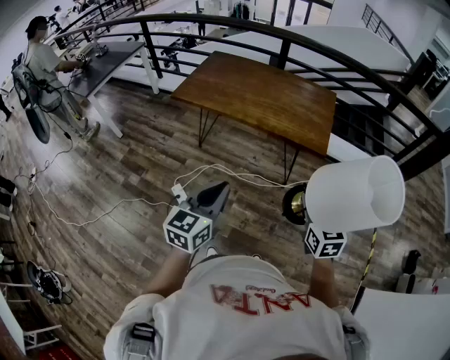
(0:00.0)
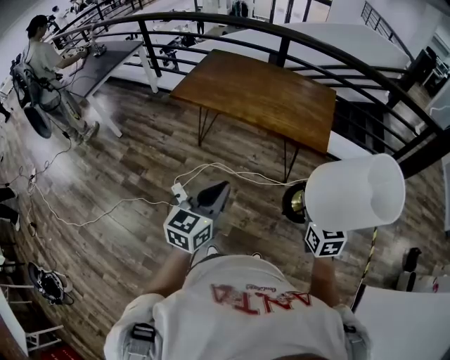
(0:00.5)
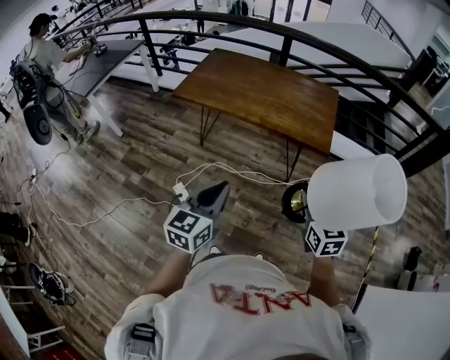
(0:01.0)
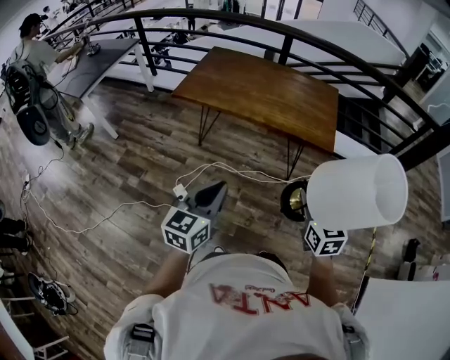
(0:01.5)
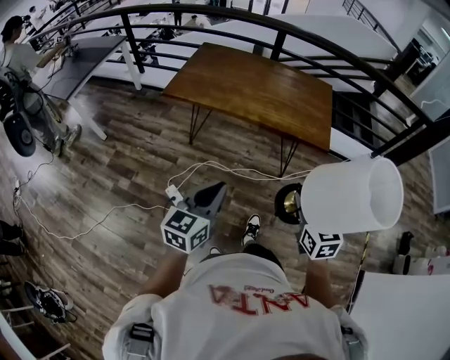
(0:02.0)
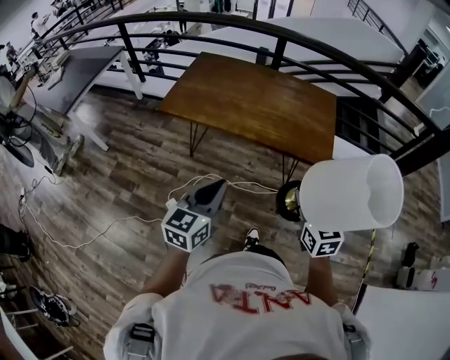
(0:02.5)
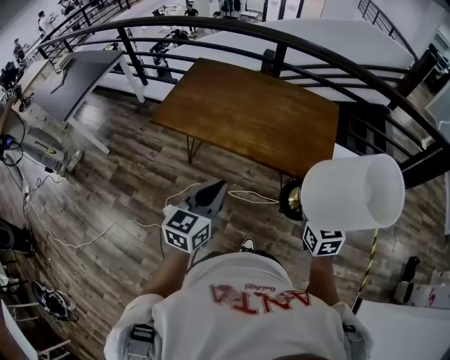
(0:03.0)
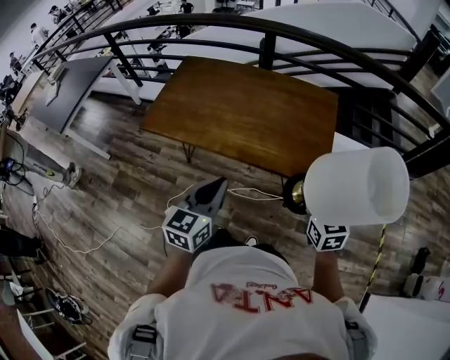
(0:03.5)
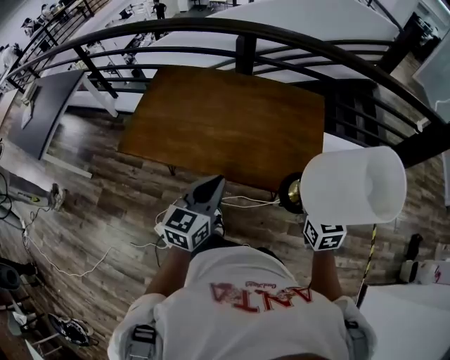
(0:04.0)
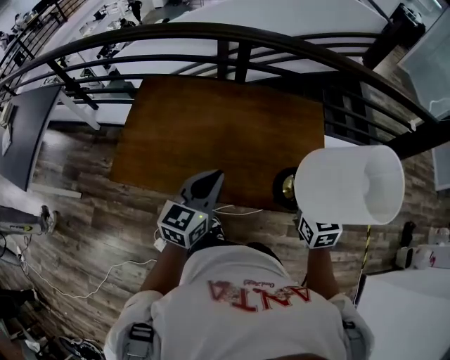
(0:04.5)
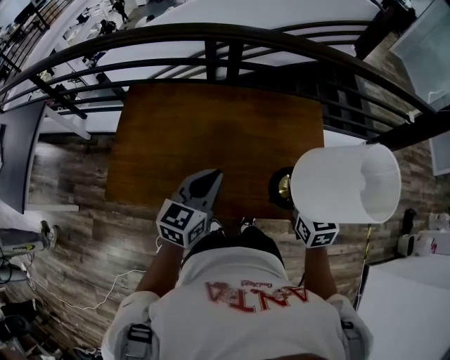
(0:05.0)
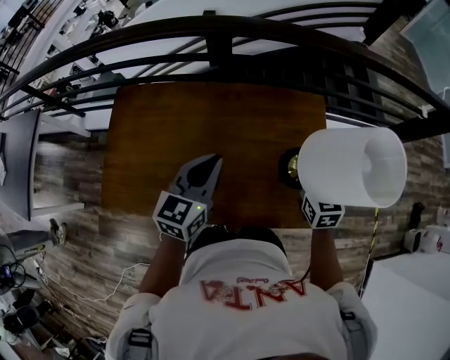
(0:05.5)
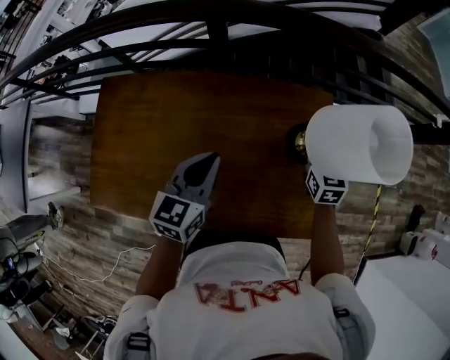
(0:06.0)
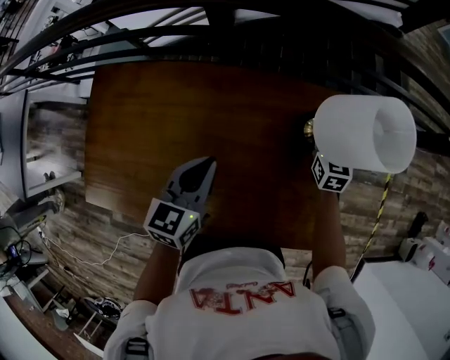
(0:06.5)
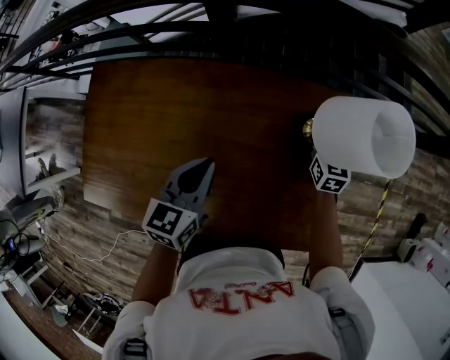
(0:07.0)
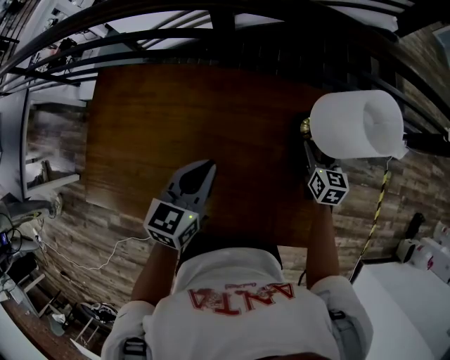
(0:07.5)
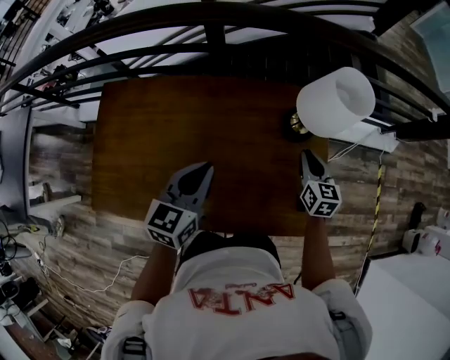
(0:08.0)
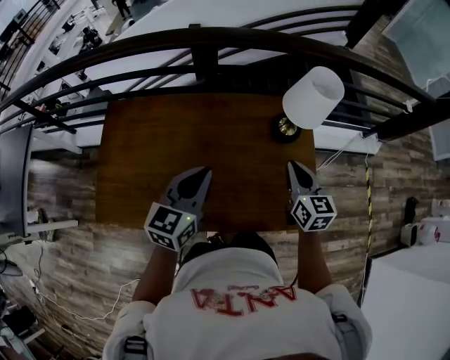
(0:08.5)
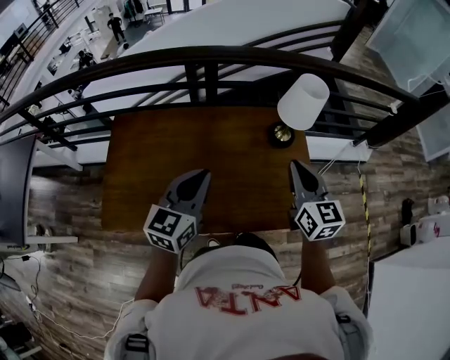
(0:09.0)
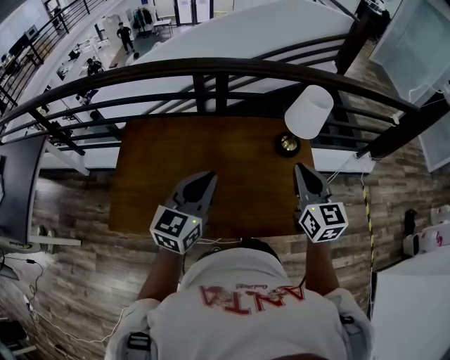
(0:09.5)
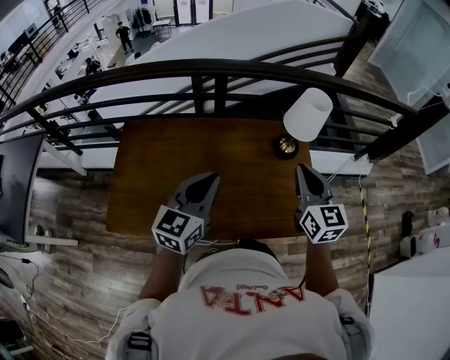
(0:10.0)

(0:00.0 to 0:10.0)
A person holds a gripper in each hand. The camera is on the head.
0:00.0 - 0:02.0: Both grippers move to the left, some 10 cm.
0:02.0 - 0:04.0: The pair of grippers is taken forward, roughly 40 cm.
0:04.0 - 0:06.0: The grippers both shift forward by roughly 40 cm.
0:06.0 - 0:08.0: The right gripper is displaced backward and downward by roughly 10 cm, and opens and closes again, while the left gripper shifts by some 5 cm.
0:08.0 - 0:10.0: The right gripper moves upward and backward, some 30 cm, and rotates roughly 20 degrees; the left gripper goes some 20 cm upward and backward.

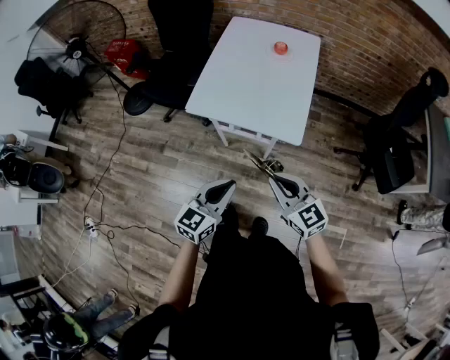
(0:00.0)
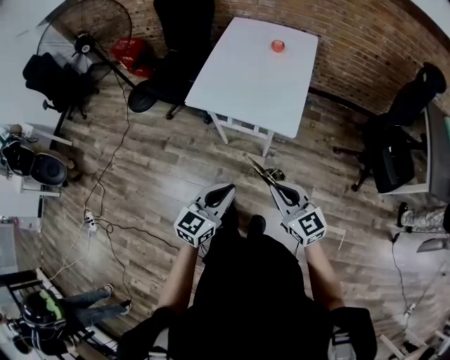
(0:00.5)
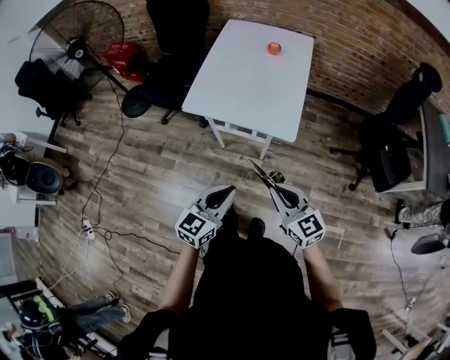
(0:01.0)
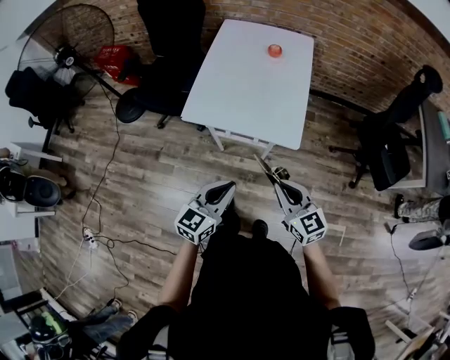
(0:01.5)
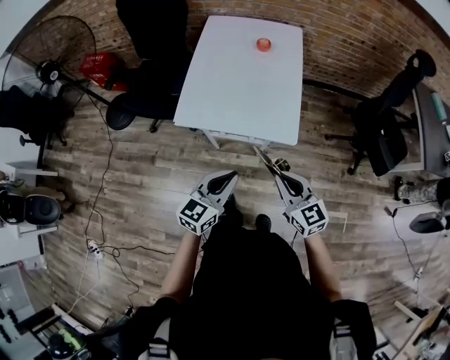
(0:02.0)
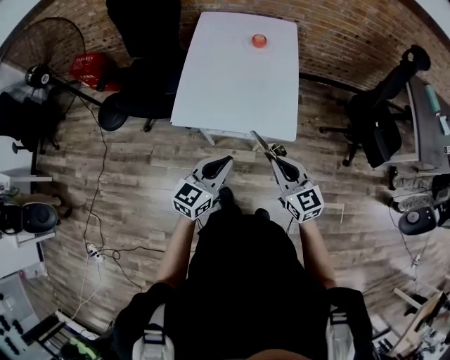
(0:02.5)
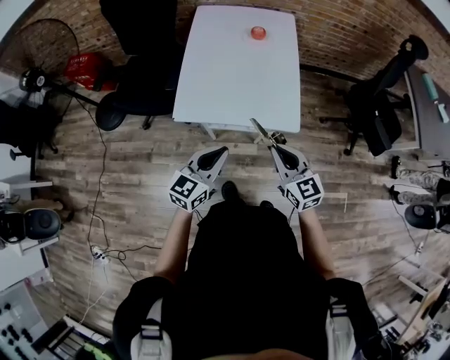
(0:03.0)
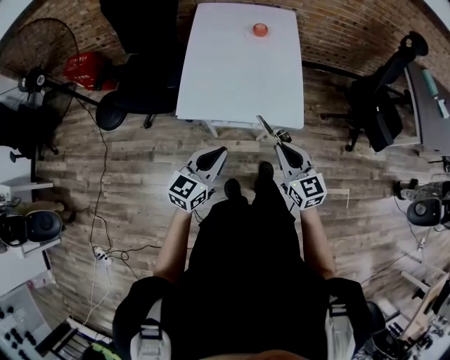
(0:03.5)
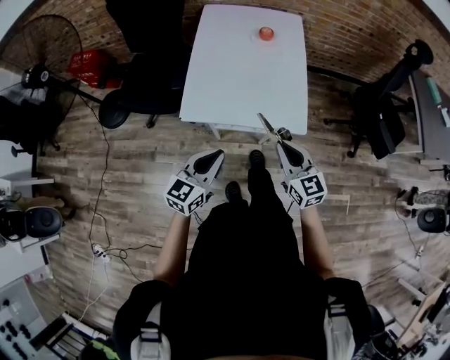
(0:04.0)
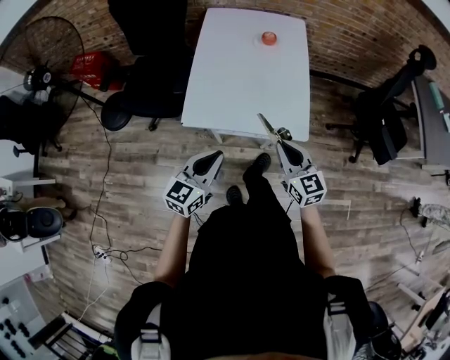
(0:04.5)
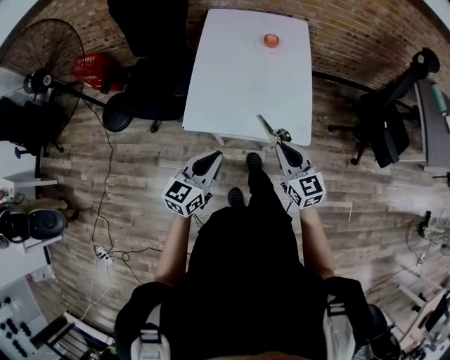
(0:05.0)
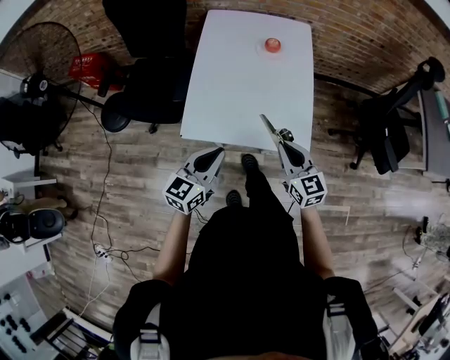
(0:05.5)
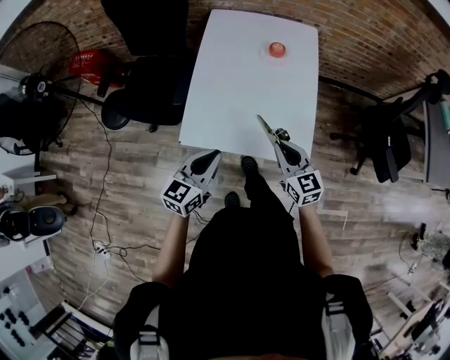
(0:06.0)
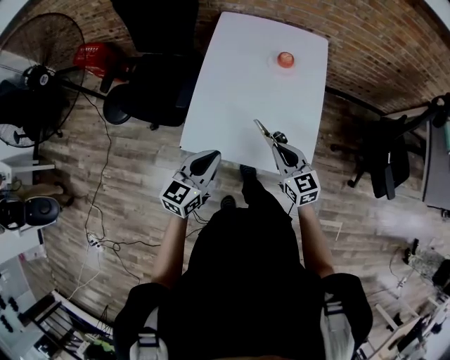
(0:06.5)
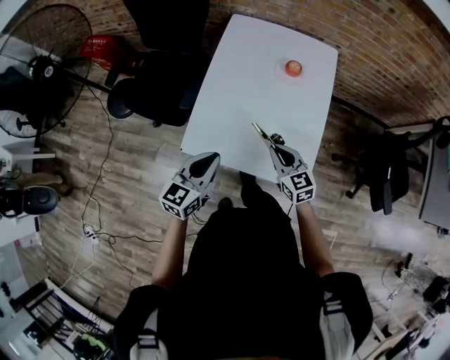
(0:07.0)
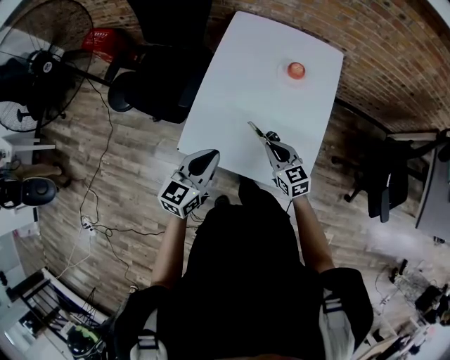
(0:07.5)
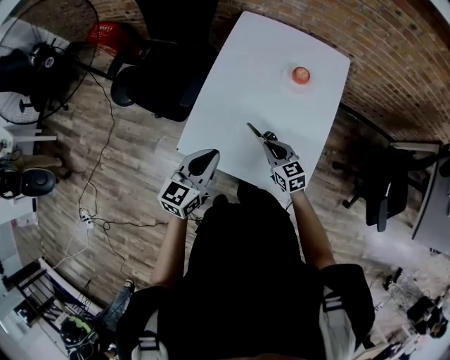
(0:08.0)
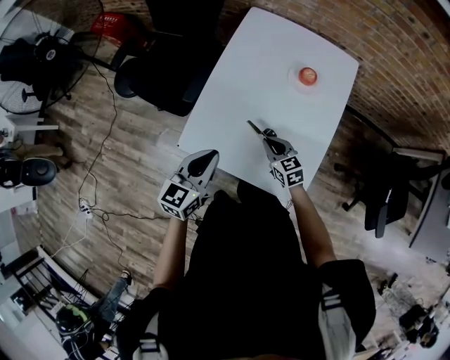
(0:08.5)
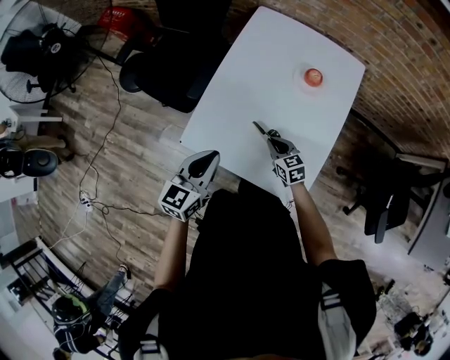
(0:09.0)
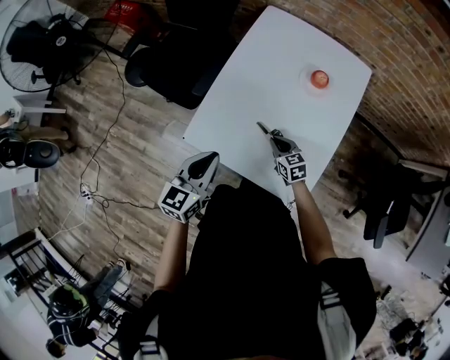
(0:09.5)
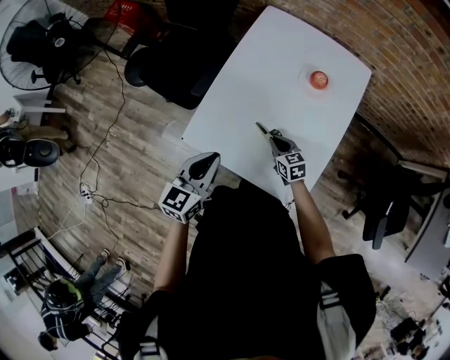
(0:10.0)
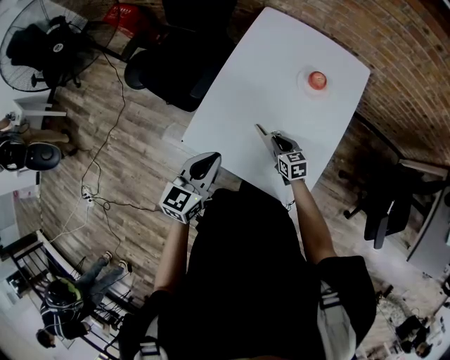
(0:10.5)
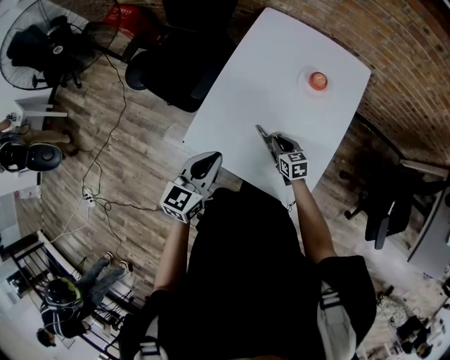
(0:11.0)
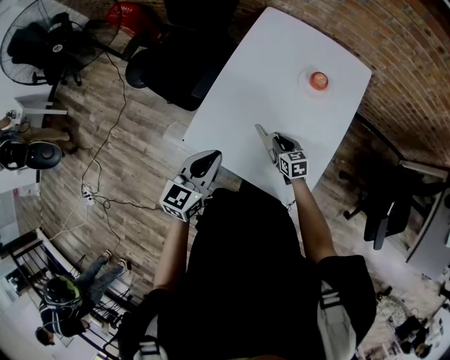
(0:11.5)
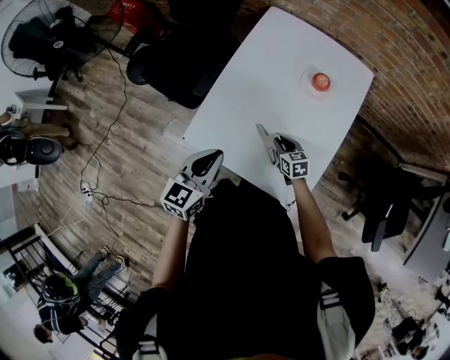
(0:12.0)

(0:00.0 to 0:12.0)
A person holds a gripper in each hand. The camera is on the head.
0:00.0 - 0:02.0: The left gripper is displaced forward by about 10 cm; the right gripper heads forward, covering approximately 5 cm.
0:02.0 - 0:04.0: The right gripper is displaced forward and to the left by about 10 cm. Meanwhile the left gripper shifts about 10 cm to the left.
0:04.0 - 0:06.0: The two grippers go some 15 cm forward.
0:06.0 - 0:08.0: The left gripper is displaced forward by roughly 10 cm. The right gripper moves forward and downward, approximately 20 cm, and turns by roughly 20 degrees.
0:08.0 - 0:10.0: The right gripper moves downward, some 10 cm.
0:10.0 - 0:12.0: The grippers move only a little.

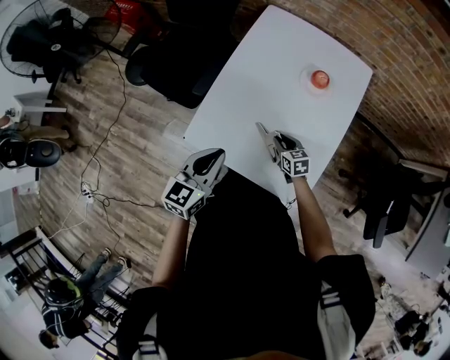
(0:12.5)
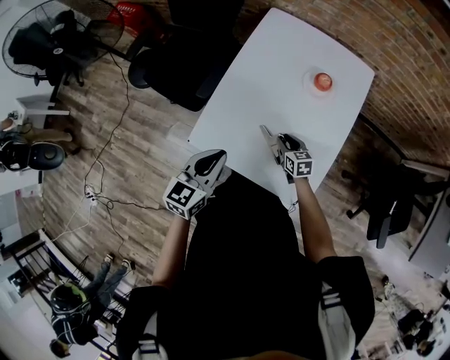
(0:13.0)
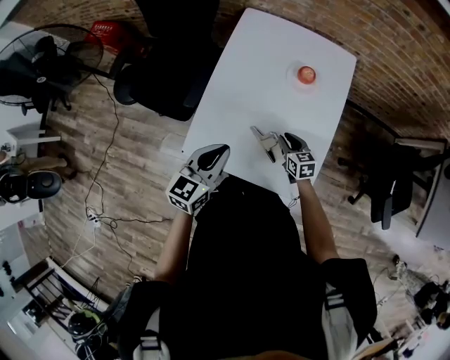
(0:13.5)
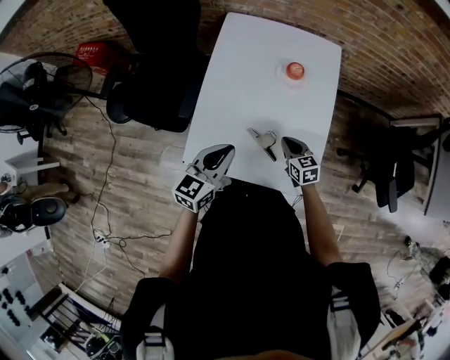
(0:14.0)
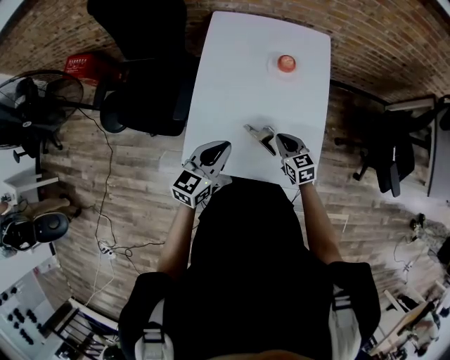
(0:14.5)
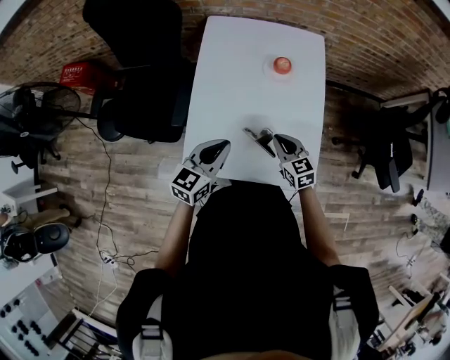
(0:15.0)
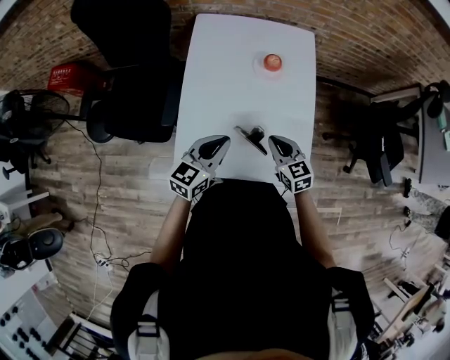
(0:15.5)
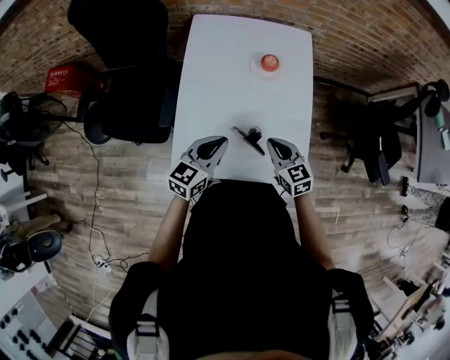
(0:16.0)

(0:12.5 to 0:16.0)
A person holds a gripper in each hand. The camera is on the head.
0:12.5 - 0:14.5: The right gripper shifts approximately 10 cm upward, and closes its fingers; the left gripper ends up some 5 cm from where it was, and turns by roughly 20 degrees.
0:14.5 - 0:16.0: The right gripper goes roughly 5 cm upward.

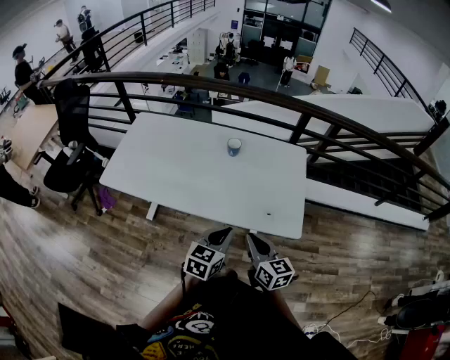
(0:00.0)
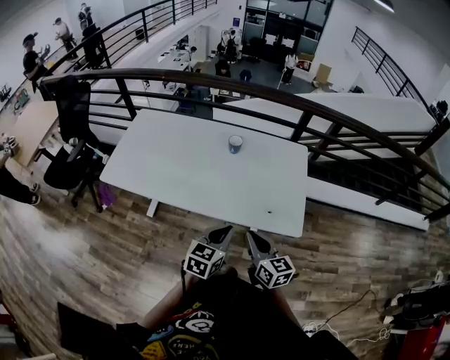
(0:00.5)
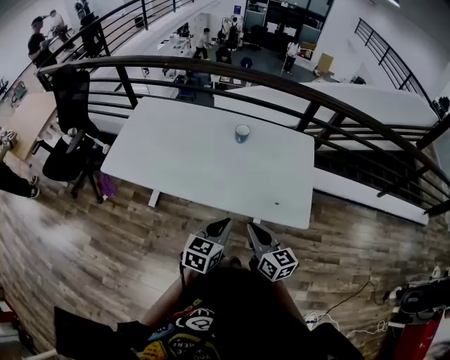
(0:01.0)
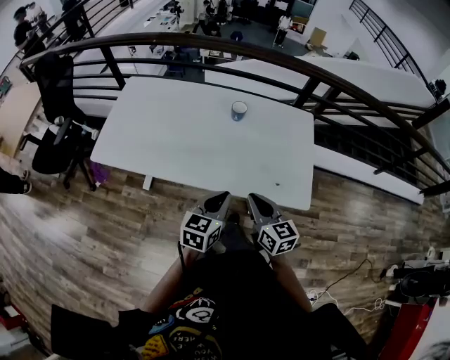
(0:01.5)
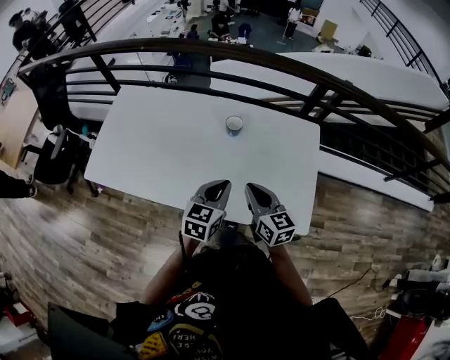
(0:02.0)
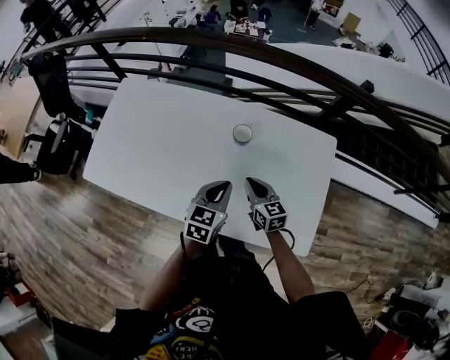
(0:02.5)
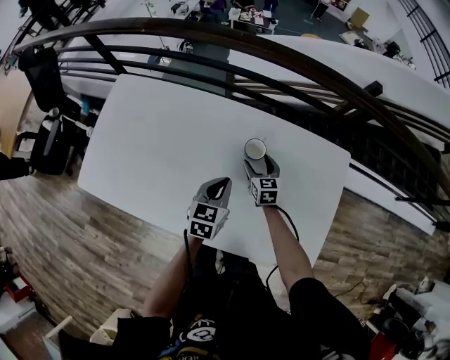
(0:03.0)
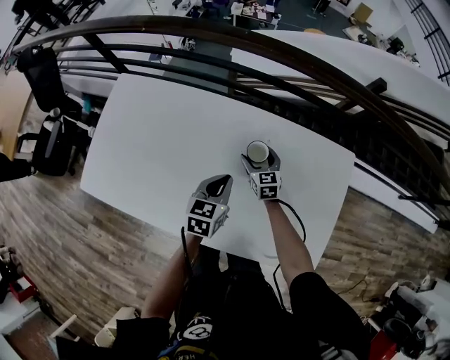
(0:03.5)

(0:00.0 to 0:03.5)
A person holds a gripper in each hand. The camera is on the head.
0:00.0 - 0:02.0: The grippers both shift forward by some 25 cm.
0:02.0 - 0:03.5: The left gripper is displaced forward and downward by roughly 25 cm, while the right gripper goes roughly 40 cm forward and downward, changes its angle by approximately 20 degrees, and opens up.
